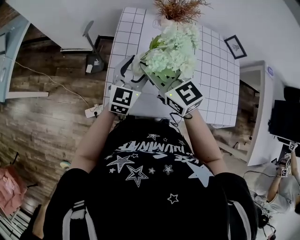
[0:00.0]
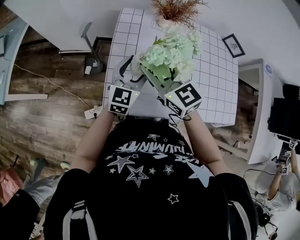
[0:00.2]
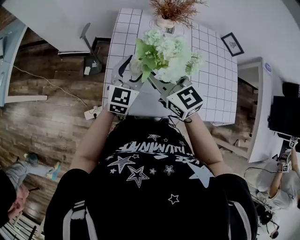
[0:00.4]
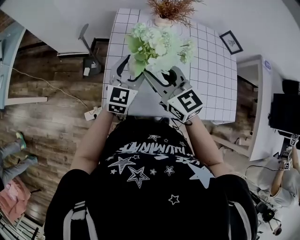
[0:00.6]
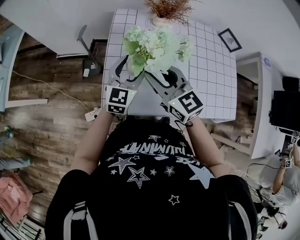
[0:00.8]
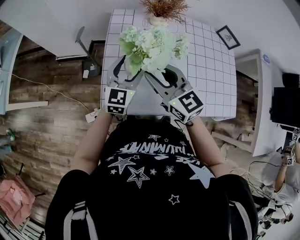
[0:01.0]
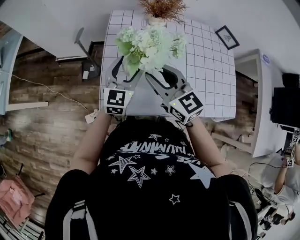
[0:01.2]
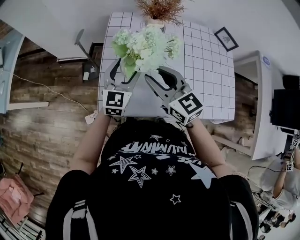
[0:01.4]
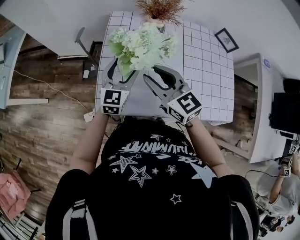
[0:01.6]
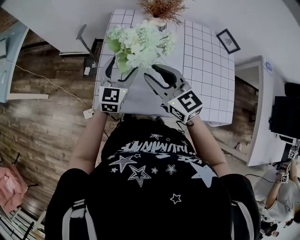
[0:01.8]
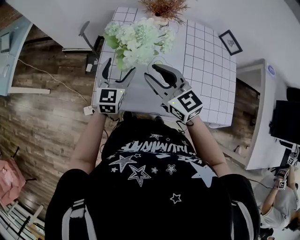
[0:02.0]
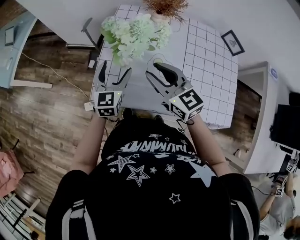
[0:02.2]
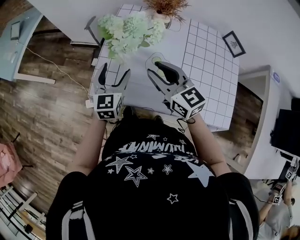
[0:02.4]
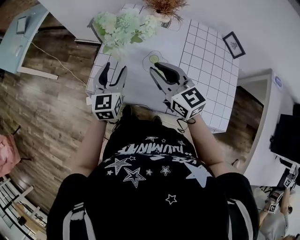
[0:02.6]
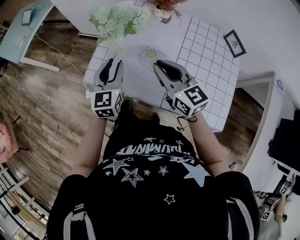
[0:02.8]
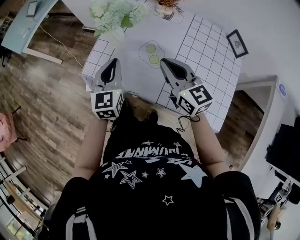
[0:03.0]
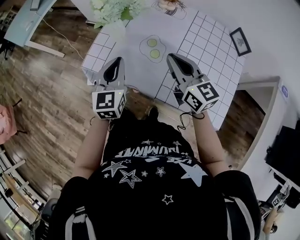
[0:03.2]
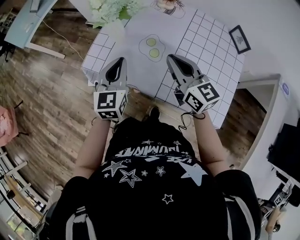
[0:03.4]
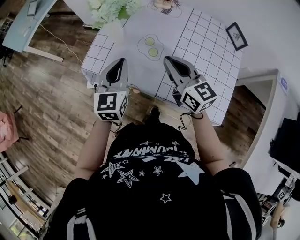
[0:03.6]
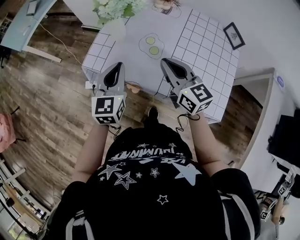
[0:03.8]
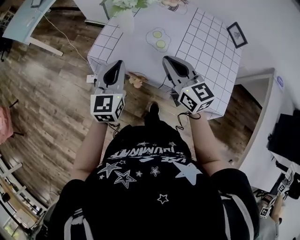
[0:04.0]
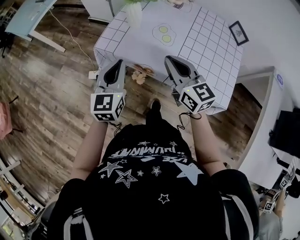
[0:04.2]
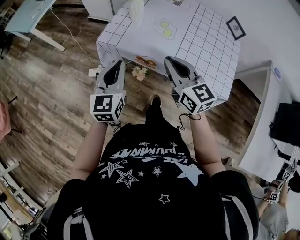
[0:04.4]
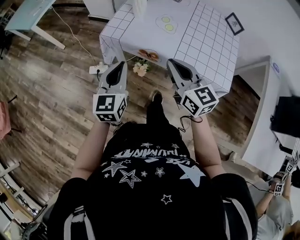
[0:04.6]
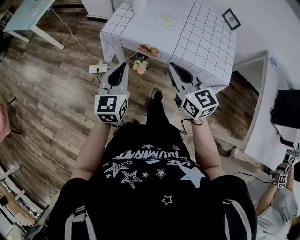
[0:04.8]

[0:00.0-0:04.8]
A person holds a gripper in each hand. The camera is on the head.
0:00.0 to 0:01.6: The right gripper travels to the right by about 5 cm.
0:01.6 to 0:03.2: The left gripper is displaced backward by approximately 15 cm, turns by approximately 30 degrees, and closes up. The right gripper moves to the right and backward, some 20 cm, and closes its fingers.
0:03.2 to 0:04.8: Both grippers move backward and to the left, about 30 cm.

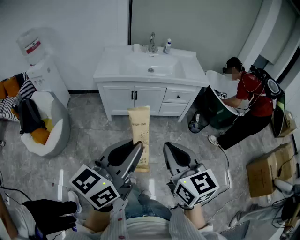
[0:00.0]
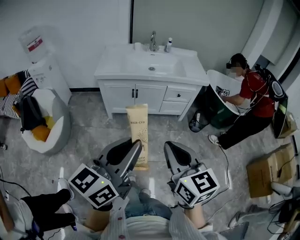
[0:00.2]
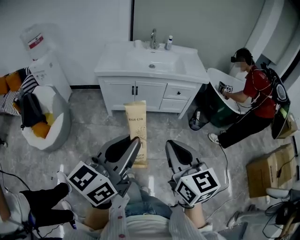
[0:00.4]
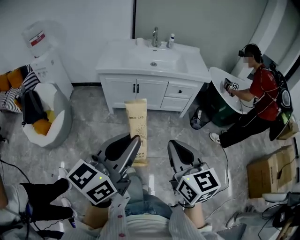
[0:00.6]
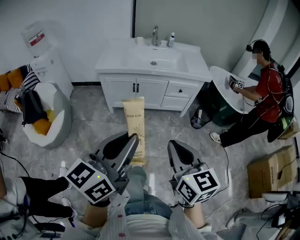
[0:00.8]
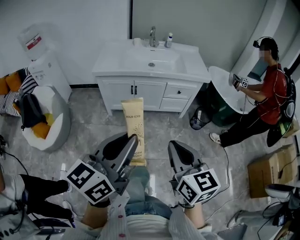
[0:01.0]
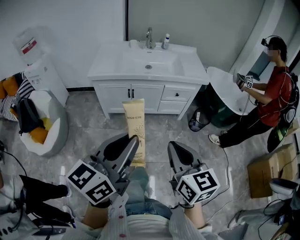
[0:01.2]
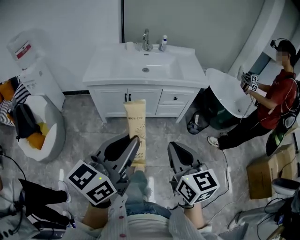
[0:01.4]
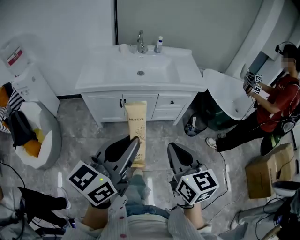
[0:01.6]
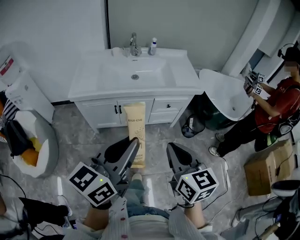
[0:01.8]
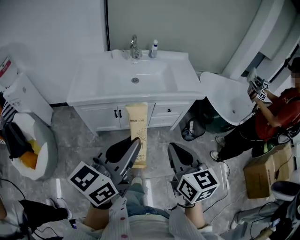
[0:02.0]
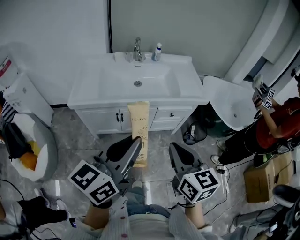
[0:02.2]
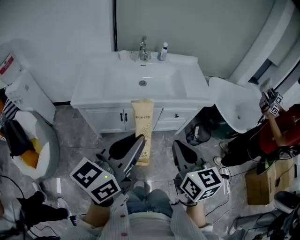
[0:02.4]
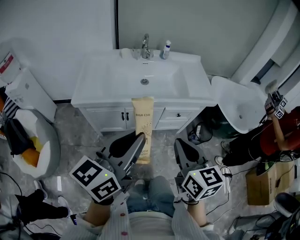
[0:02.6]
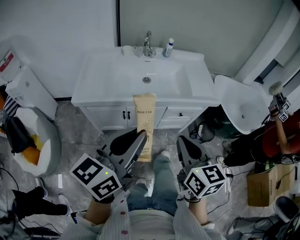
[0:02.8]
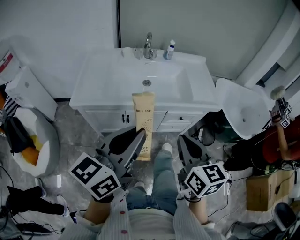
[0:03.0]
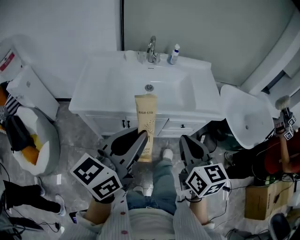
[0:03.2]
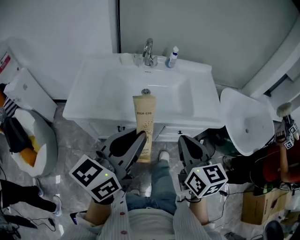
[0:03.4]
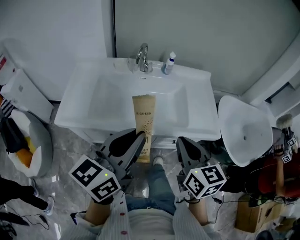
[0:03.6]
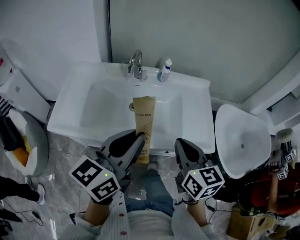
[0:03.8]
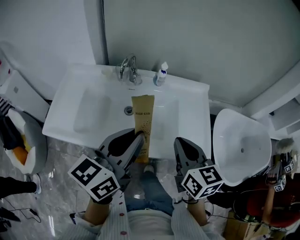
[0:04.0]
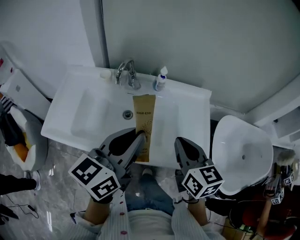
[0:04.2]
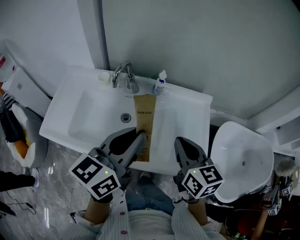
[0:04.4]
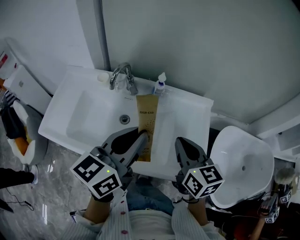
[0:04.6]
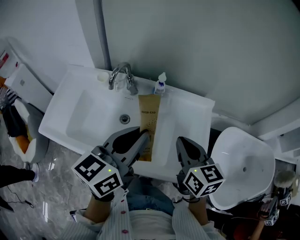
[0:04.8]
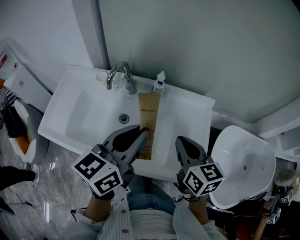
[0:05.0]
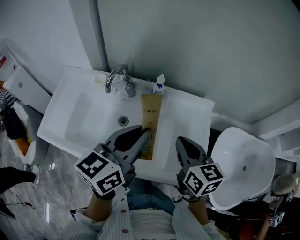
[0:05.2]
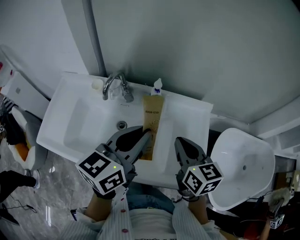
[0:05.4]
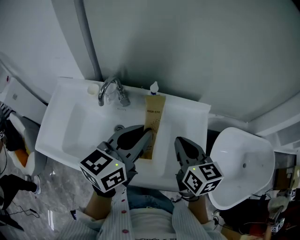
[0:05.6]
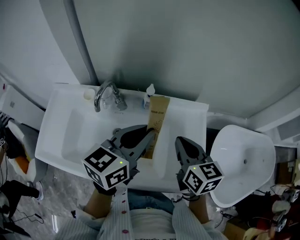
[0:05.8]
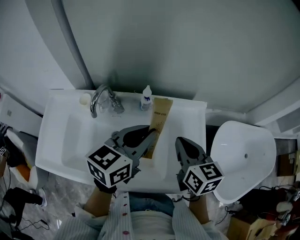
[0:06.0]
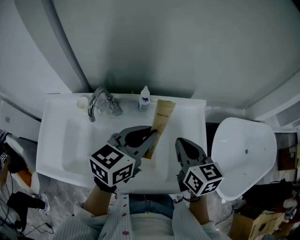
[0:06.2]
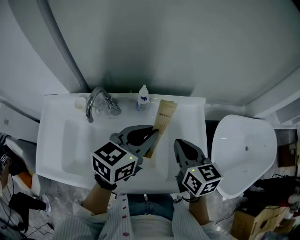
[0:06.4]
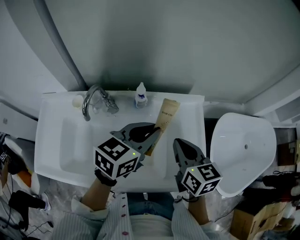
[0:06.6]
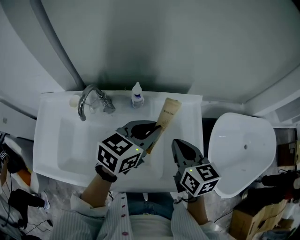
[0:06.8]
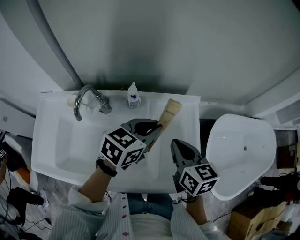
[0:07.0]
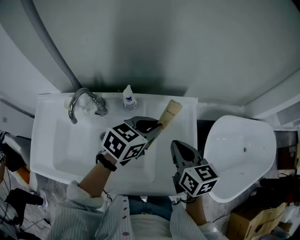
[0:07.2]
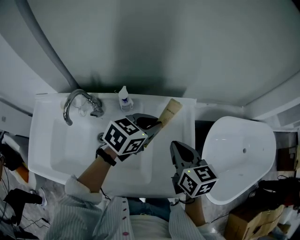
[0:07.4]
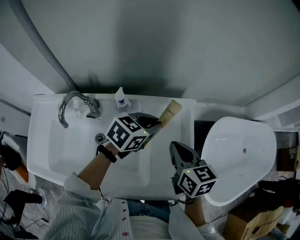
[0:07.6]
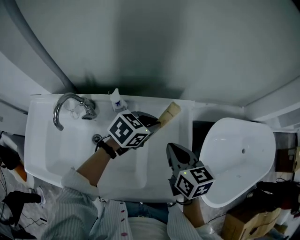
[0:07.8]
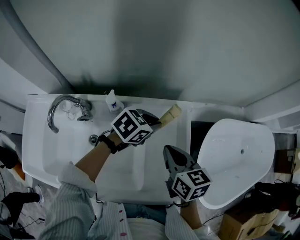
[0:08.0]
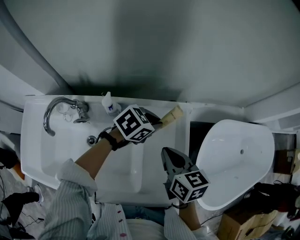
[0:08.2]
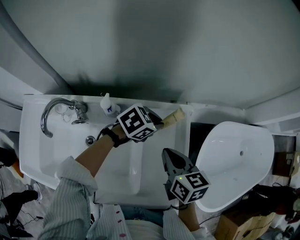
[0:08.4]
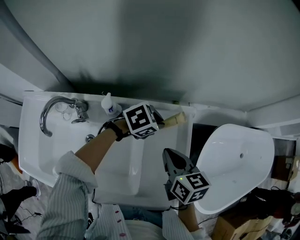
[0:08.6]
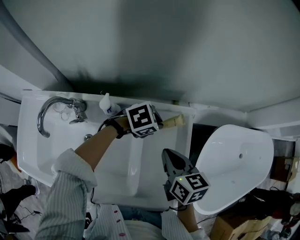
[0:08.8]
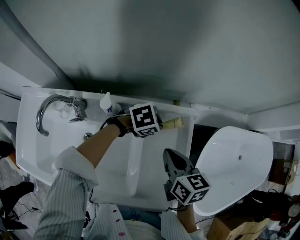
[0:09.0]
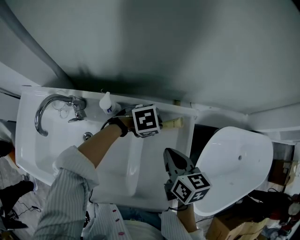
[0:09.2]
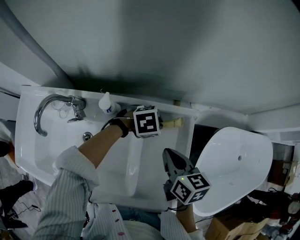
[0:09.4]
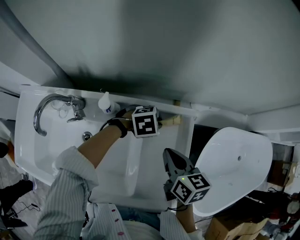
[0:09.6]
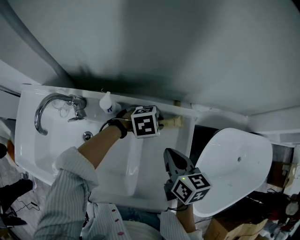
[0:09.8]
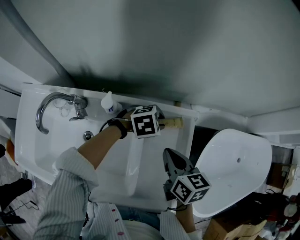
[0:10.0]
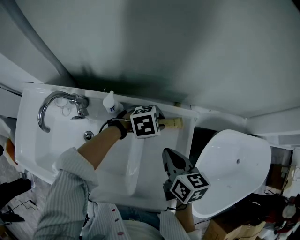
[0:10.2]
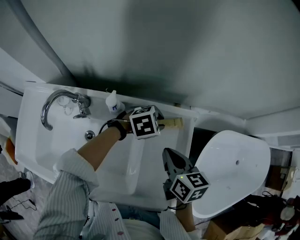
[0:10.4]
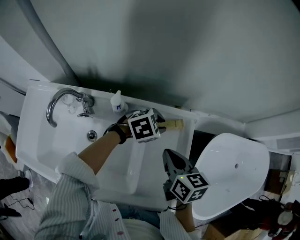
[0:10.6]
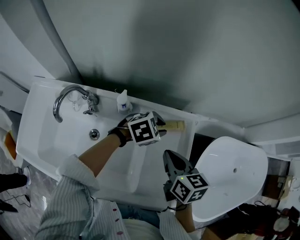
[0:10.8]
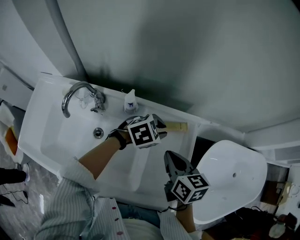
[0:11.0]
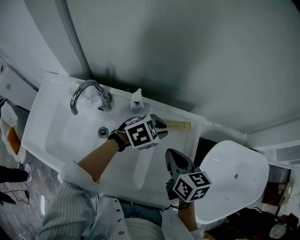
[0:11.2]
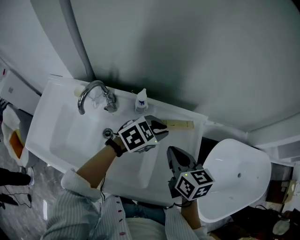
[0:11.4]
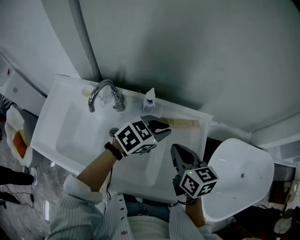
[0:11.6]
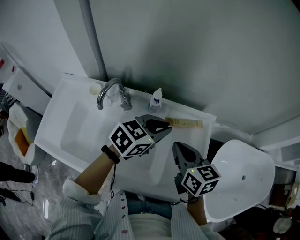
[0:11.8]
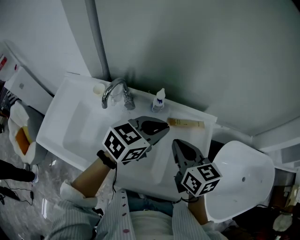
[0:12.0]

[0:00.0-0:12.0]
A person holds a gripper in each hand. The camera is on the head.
0:00.0 to 0:01.6: Both grippers move forward, about 15 cm.
0:01.6 to 0:03.0: The grippers both shift forward by some 20 cm.
0:03.0 to 0:04.4: The right gripper is displaced forward by roughly 40 cm. Meanwhile the left gripper moves forward and to the right, approximately 40 cm.
0:04.4 to 0:06.0: The right gripper goes approximately 10 cm forward. The left gripper shifts about 15 cm forward and to the right.
0:06.0 to 0:07.6: The right gripper moves to the right, downward and forward, approximately 10 cm. Meanwhile the left gripper shifts approximately 20 cm downward, forward and to the right, and rotates roughly 30 degrees.
0:07.6 to 0:09.0: The left gripper goes roughly 15 cm downward, and rotates roughly 30 degrees. Meanwhile the right gripper is displaced downward by roughly 5 cm.
0:09.0 to 0:10.4: The grippers move only a little.
0:10.4 to 0:12.0: The right gripper heads upward, to the left and backward, covering some 15 cm; the left gripper heads upward, backward and to the left, covering about 30 cm, and points its fingers about 30 degrees further upward.

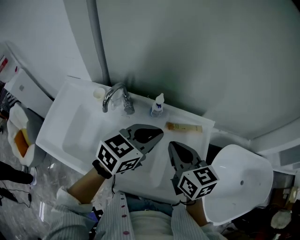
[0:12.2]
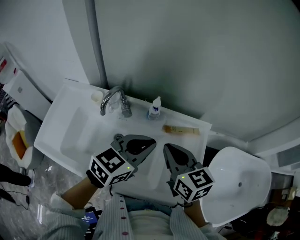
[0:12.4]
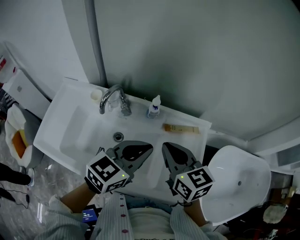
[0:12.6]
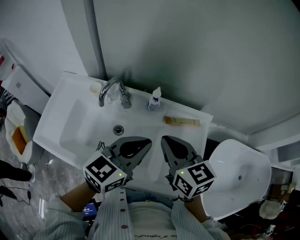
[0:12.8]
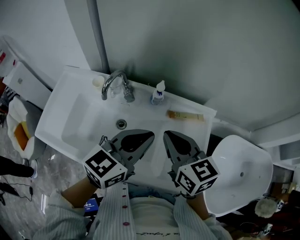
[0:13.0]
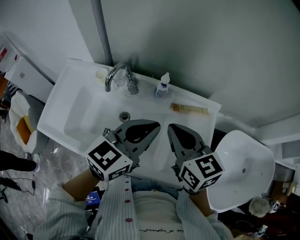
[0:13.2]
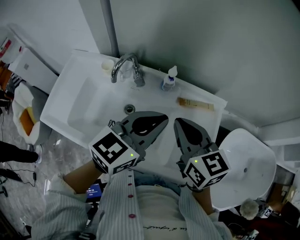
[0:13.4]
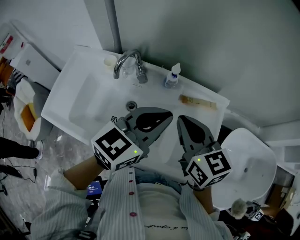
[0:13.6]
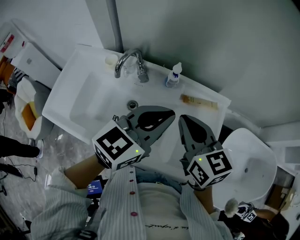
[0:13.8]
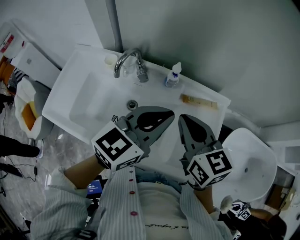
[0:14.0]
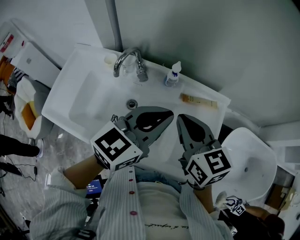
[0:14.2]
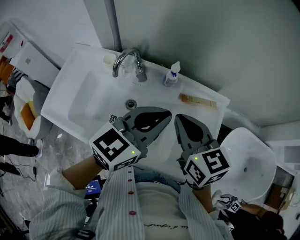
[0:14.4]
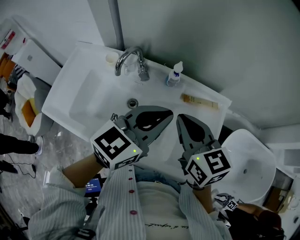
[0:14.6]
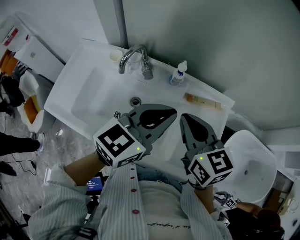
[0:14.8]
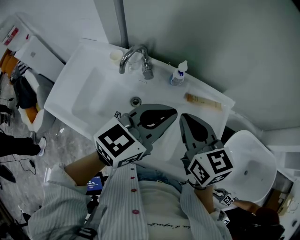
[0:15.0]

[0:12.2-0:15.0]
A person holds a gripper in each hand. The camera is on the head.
0:12.2 to 0:13.6: The left gripper moves roughly 5 cm.
0:13.6 to 0:15.0: Both grippers stay put.

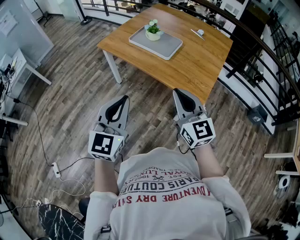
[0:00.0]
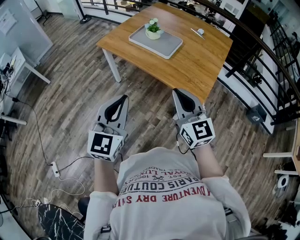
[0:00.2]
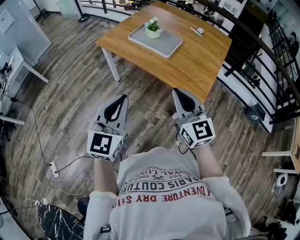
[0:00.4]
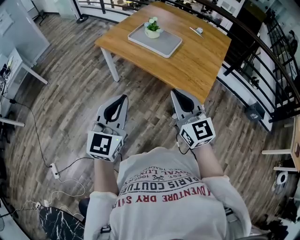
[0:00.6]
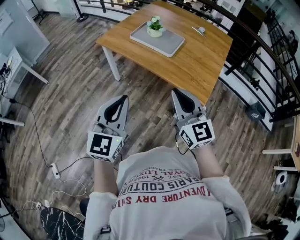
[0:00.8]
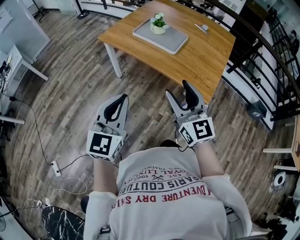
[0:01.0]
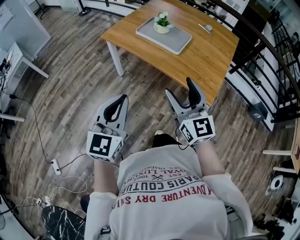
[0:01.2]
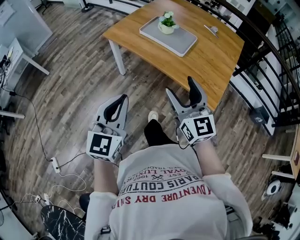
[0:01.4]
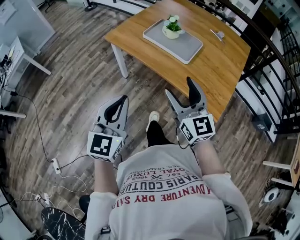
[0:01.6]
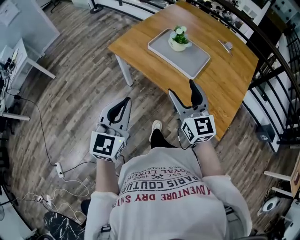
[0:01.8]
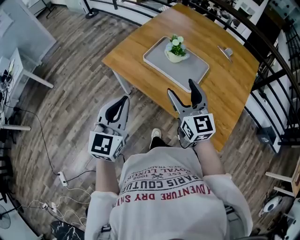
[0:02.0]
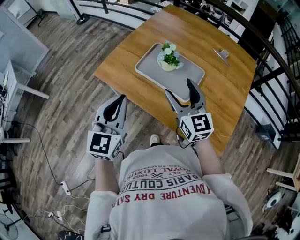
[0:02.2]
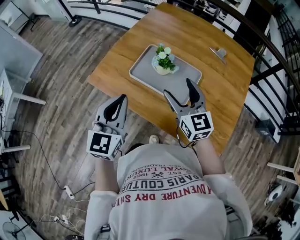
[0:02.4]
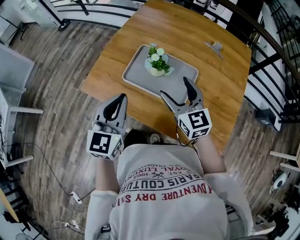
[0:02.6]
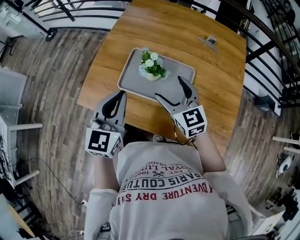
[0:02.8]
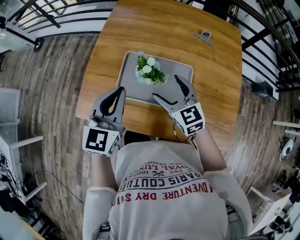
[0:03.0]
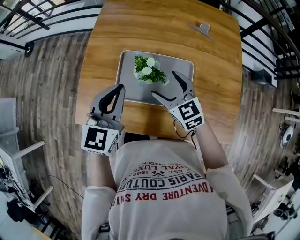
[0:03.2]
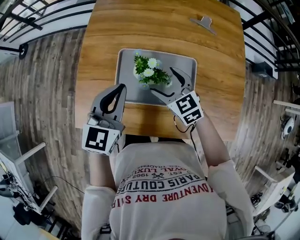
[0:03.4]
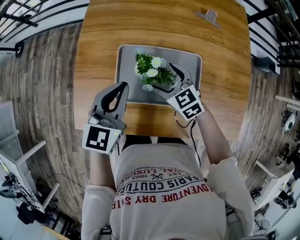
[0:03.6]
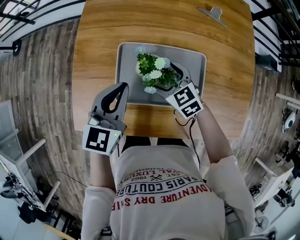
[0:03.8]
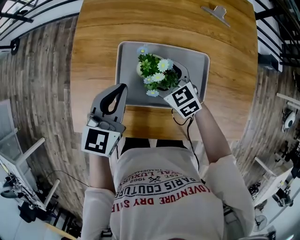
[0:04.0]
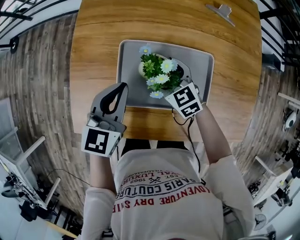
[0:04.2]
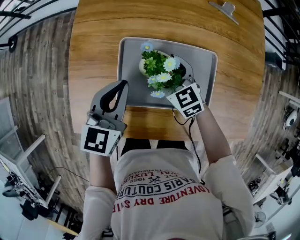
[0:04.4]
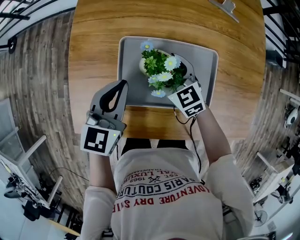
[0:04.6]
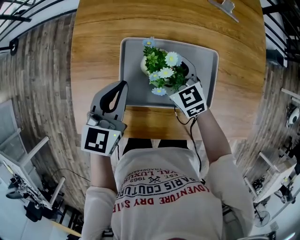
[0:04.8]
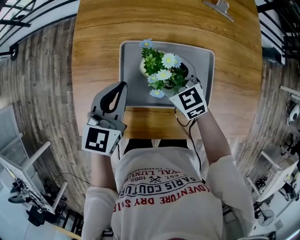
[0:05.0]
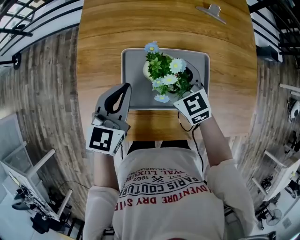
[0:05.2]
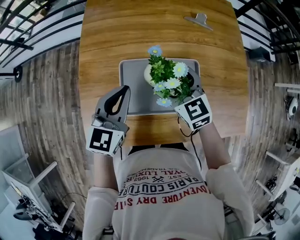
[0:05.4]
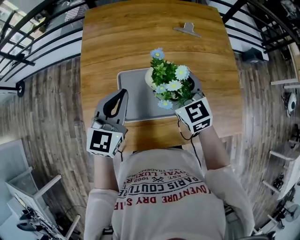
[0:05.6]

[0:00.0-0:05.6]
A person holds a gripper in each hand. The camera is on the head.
0:00.0 to 0:01.4: Both grippers travel together to the left and forward, some 10 cm. The right gripper opens.
0:01.4 to 0:02.8: Both grippers travel together forward, some 40 cm. The right gripper rotates roughly 20 degrees.
0:02.8 to 0:04.2: The right gripper shifts about 20 cm downward, forward and to the left, and swivels roughly 20 degrees. The left gripper goes some 20 cm forward and downward, and rotates approximately 20 degrees.
0:04.2 to 0:05.6: The right gripper is displaced upward by some 15 cm, and swivels about 20 degrees; the left gripper moves upward, some 10 cm.
